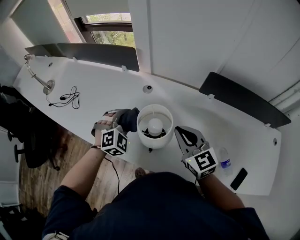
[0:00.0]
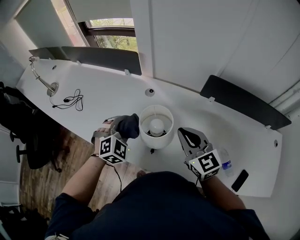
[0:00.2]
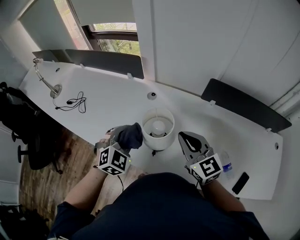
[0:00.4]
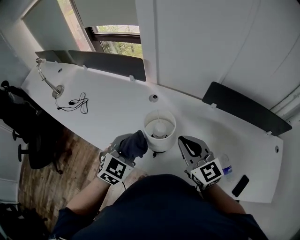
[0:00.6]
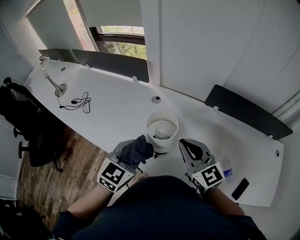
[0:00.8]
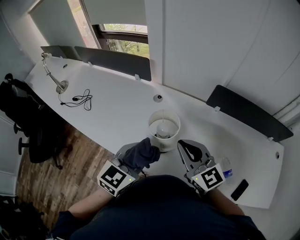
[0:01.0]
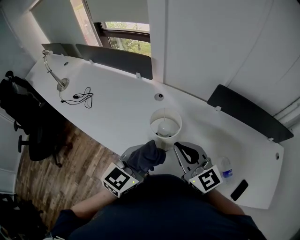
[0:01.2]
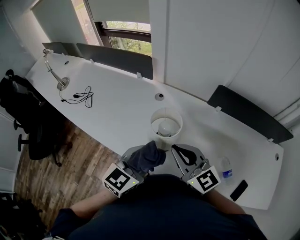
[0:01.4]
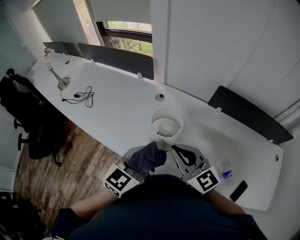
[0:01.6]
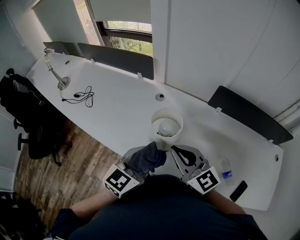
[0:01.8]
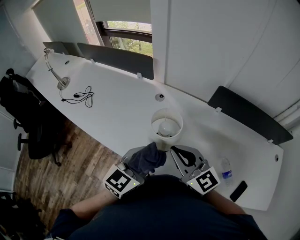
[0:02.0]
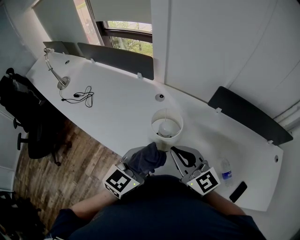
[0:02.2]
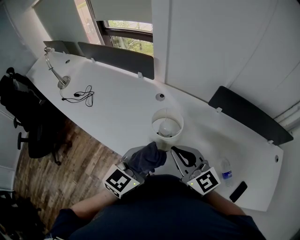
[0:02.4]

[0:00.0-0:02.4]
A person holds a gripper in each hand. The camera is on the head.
0:00.0 to 0:01.2: The right gripper shifts approximately 10 cm backward and upward; the left gripper shifts approximately 20 cm backward and upward, and rolls counterclockwise, seen from behind, by about 50 degrees.
0:01.2 to 0:02.4: The grippers stay close to where they were, moving slightly.

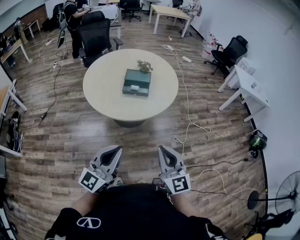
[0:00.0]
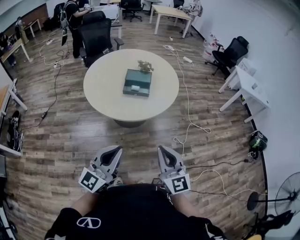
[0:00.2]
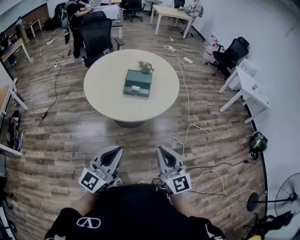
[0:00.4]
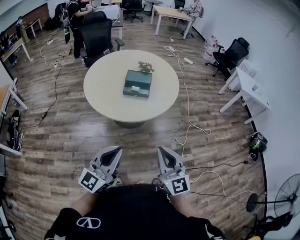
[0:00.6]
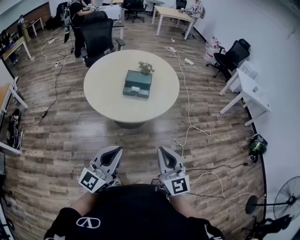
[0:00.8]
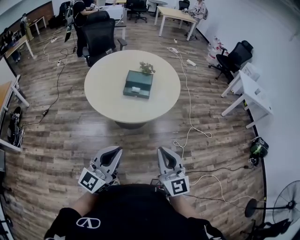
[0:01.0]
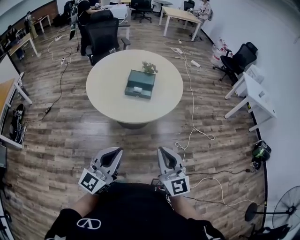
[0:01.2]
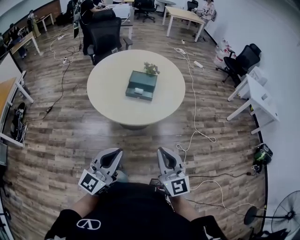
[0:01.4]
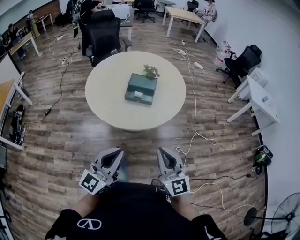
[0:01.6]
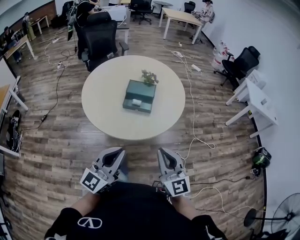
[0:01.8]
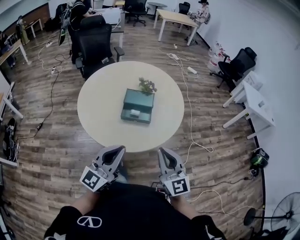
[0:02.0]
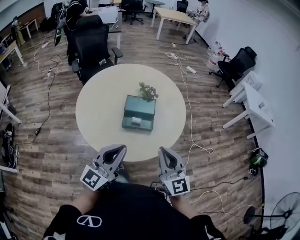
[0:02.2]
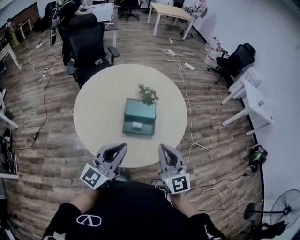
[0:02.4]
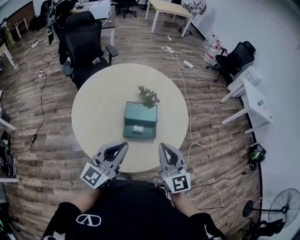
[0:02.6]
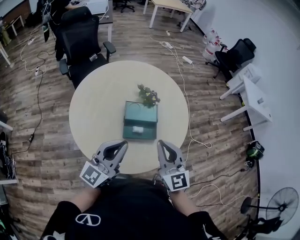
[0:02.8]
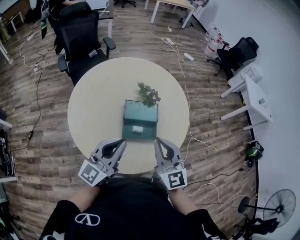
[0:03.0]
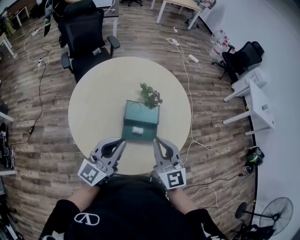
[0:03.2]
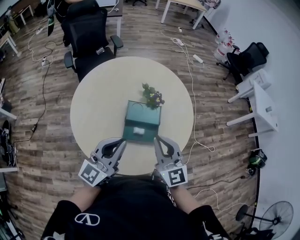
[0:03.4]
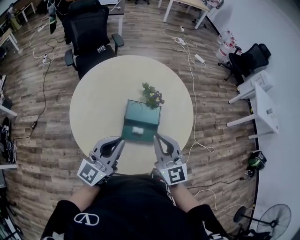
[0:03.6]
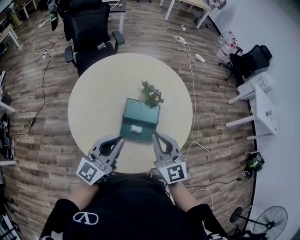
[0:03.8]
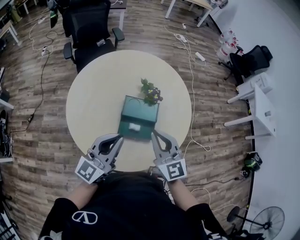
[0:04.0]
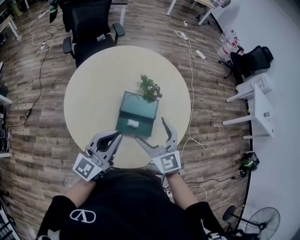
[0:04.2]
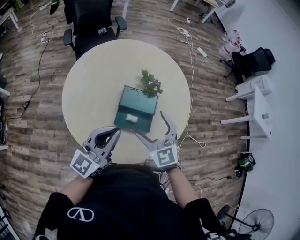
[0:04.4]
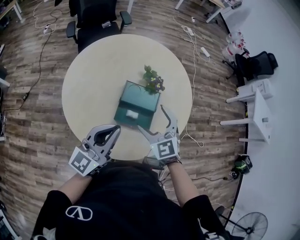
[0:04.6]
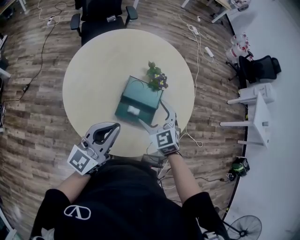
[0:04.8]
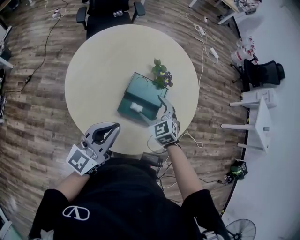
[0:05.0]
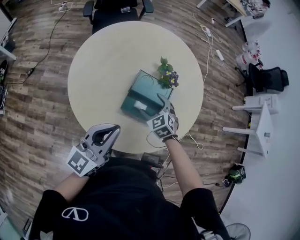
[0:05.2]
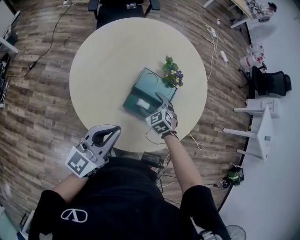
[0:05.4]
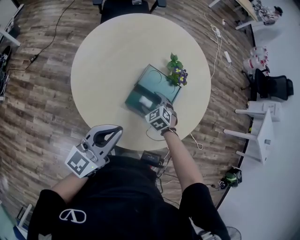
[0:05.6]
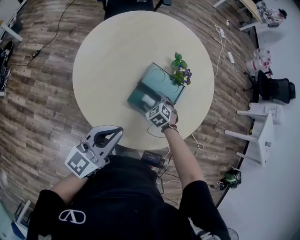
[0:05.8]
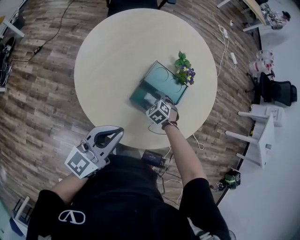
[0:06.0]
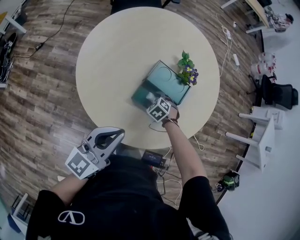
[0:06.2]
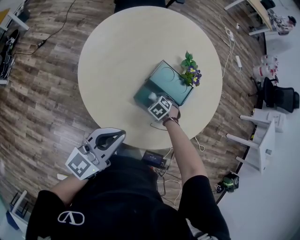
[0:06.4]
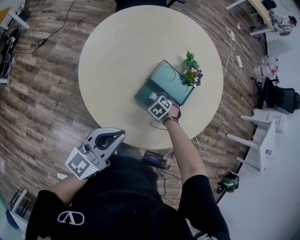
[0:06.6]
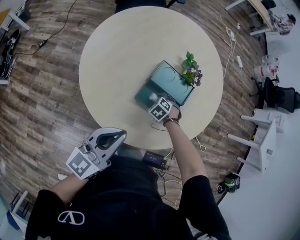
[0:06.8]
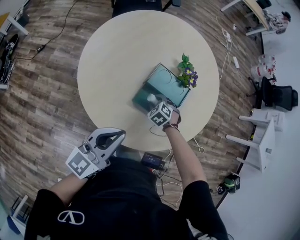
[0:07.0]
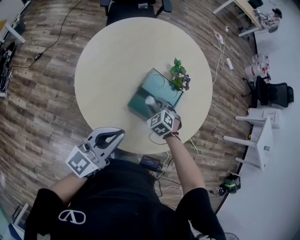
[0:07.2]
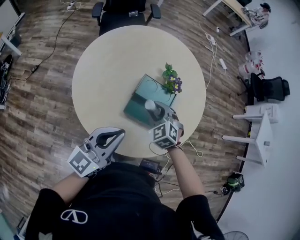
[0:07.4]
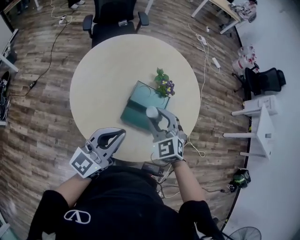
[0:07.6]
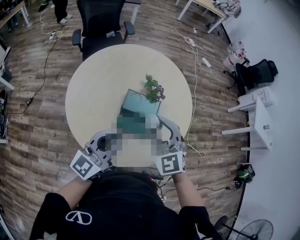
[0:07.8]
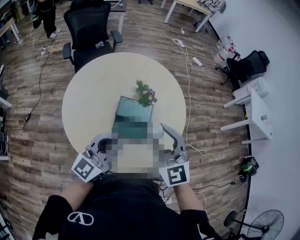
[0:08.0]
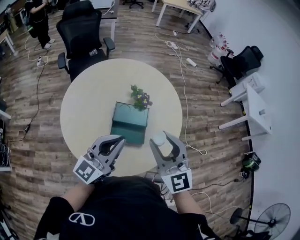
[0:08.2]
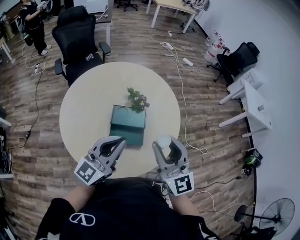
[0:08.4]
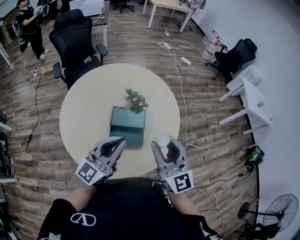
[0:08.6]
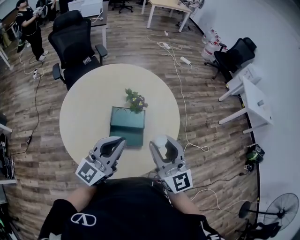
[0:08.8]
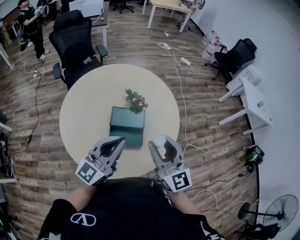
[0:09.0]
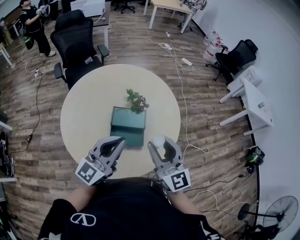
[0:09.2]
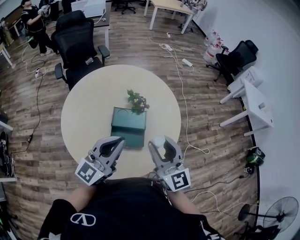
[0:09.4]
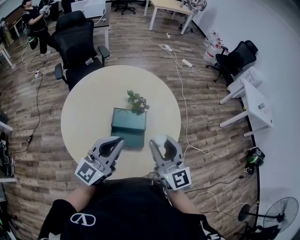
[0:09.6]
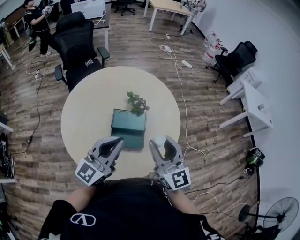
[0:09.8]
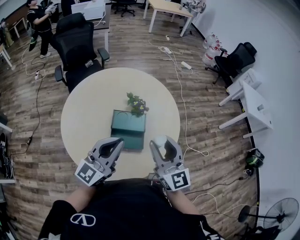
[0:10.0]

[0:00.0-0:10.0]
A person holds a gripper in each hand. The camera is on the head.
0:00.0 to 0:01.4: The left gripper moves about 5 cm, while the right gripper shifts roughly 5 cm forward.
0:01.4 to 0:02.8: The two grippers travel together, forward, roughly 50 cm.
0:02.8 to 0:04.2: The left gripper is displaced forward by some 5 cm. The right gripper goes approximately 10 cm forward and downward, turns by roughly 20 degrees, and opens.
0:04.2 to 0:05.8: The right gripper heads downward, covering about 35 cm, and tips its fingers downward by about 50 degrees, while the left gripper shifts some 10 cm downward and backward.
0:05.8 to 0:07.2: The right gripper shifts roughly 5 cm upward.
0:07.2 to 0:08.6: The left gripper travels upward, to the right and forward by roughly 20 cm, and rotates approximately 30 degrees. The right gripper travels upward by some 40 cm, and points its fingers some 70 degrees further upward.
0:08.6 to 0:10.0: The grippers move only a little.

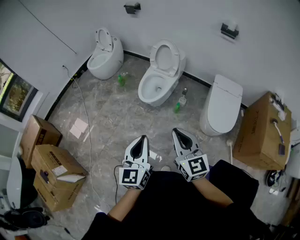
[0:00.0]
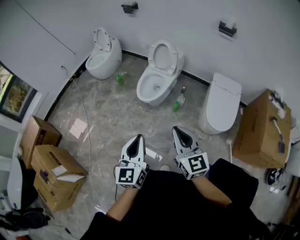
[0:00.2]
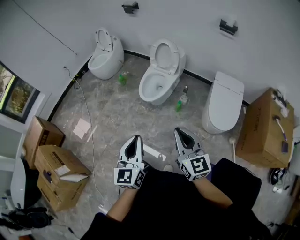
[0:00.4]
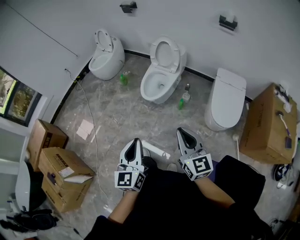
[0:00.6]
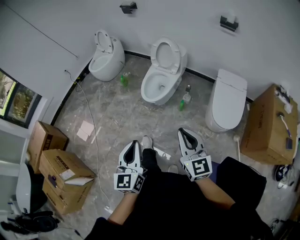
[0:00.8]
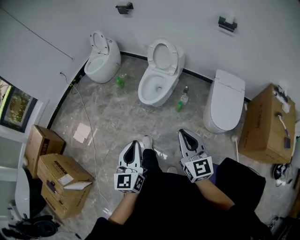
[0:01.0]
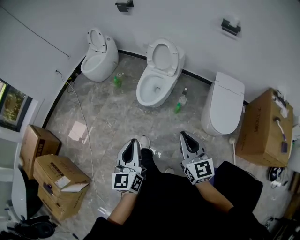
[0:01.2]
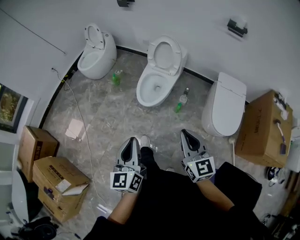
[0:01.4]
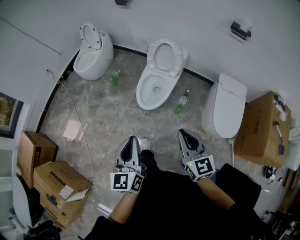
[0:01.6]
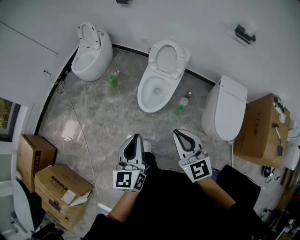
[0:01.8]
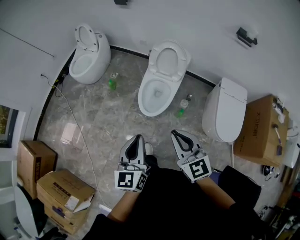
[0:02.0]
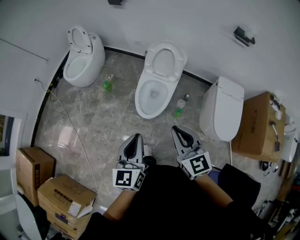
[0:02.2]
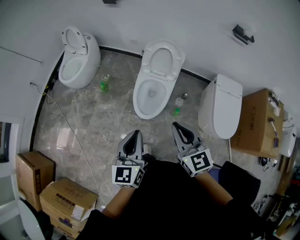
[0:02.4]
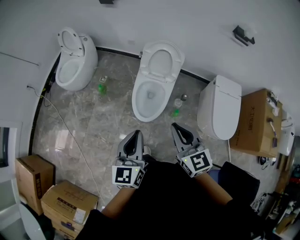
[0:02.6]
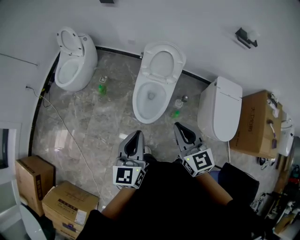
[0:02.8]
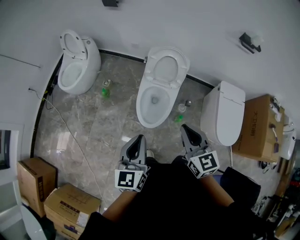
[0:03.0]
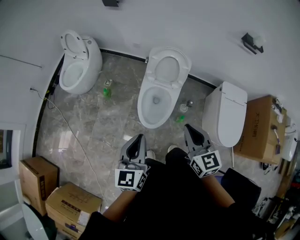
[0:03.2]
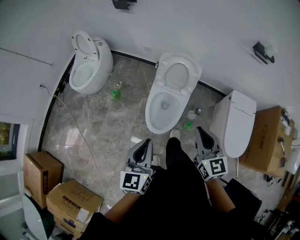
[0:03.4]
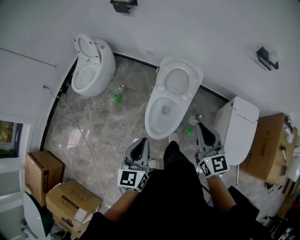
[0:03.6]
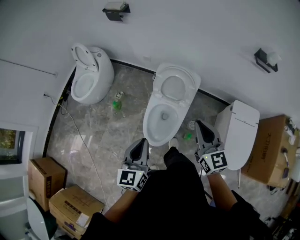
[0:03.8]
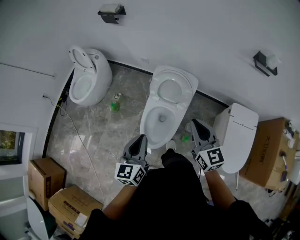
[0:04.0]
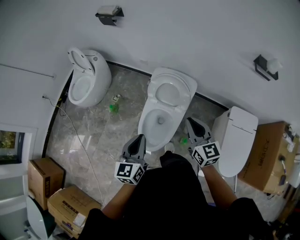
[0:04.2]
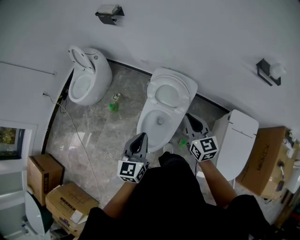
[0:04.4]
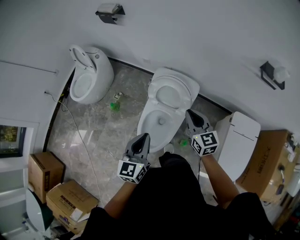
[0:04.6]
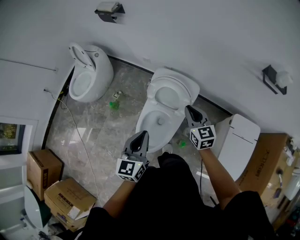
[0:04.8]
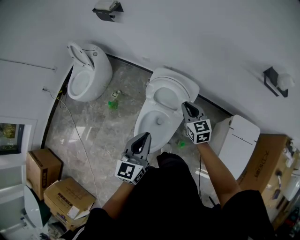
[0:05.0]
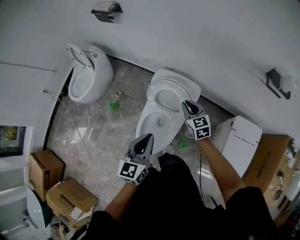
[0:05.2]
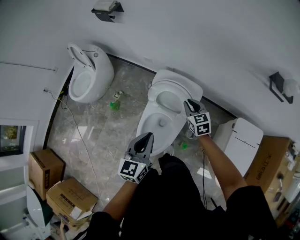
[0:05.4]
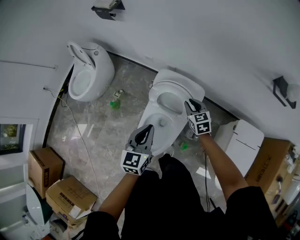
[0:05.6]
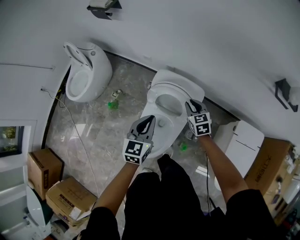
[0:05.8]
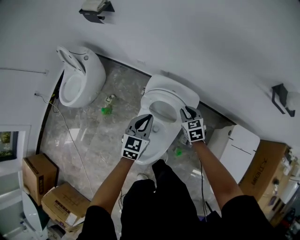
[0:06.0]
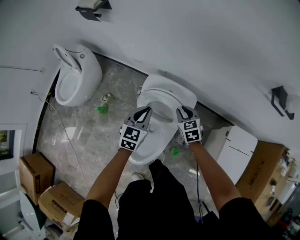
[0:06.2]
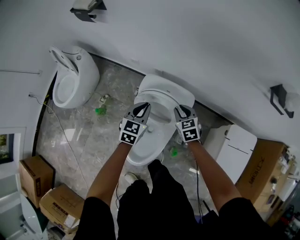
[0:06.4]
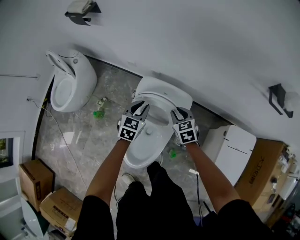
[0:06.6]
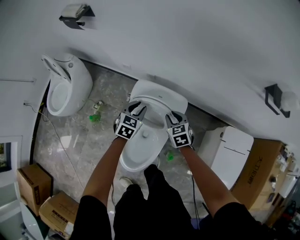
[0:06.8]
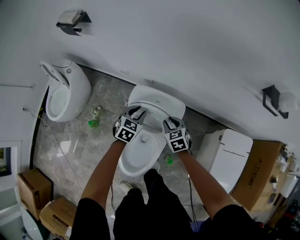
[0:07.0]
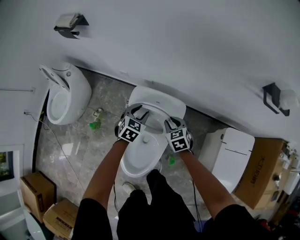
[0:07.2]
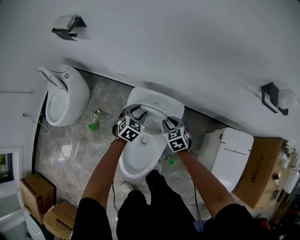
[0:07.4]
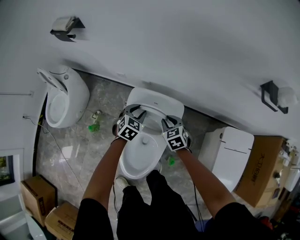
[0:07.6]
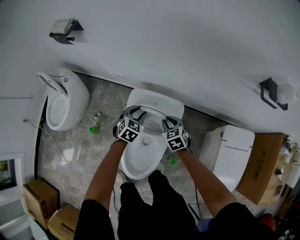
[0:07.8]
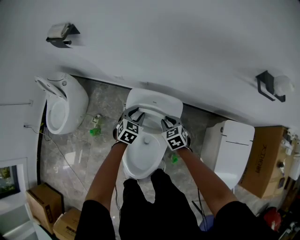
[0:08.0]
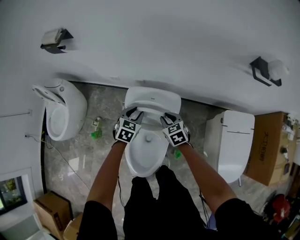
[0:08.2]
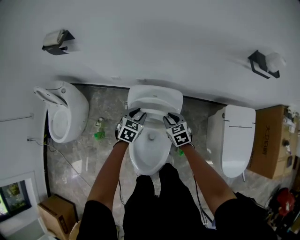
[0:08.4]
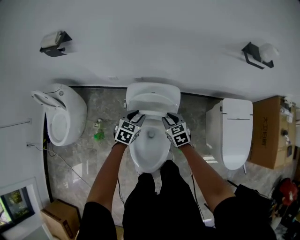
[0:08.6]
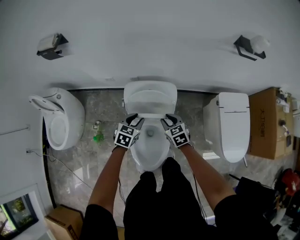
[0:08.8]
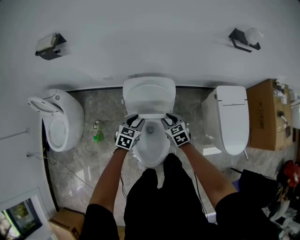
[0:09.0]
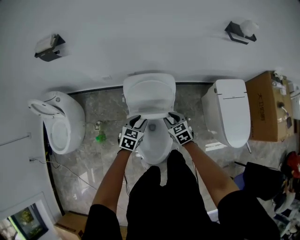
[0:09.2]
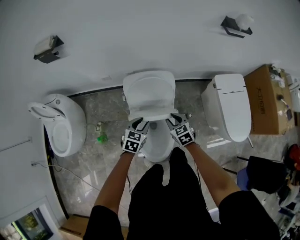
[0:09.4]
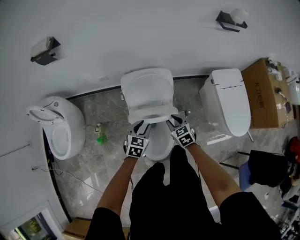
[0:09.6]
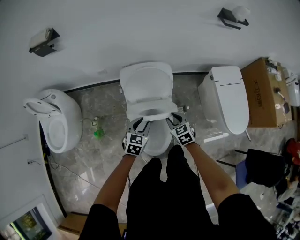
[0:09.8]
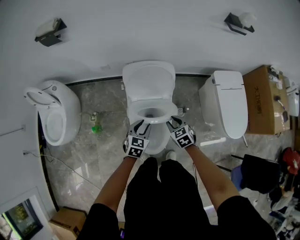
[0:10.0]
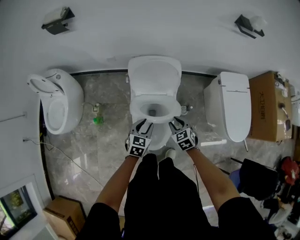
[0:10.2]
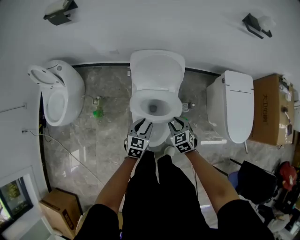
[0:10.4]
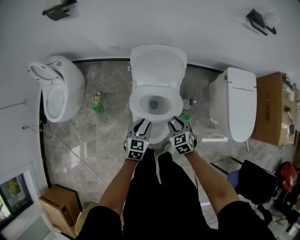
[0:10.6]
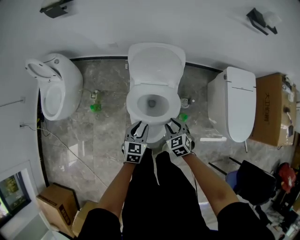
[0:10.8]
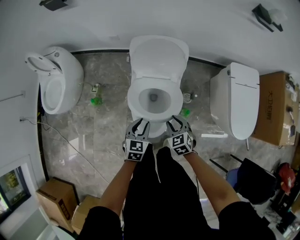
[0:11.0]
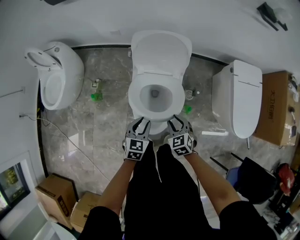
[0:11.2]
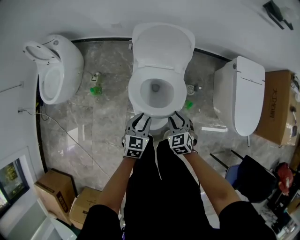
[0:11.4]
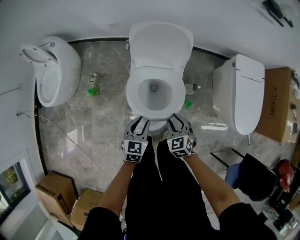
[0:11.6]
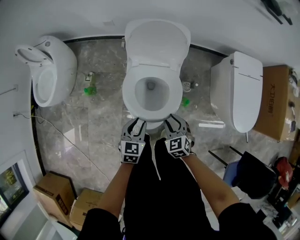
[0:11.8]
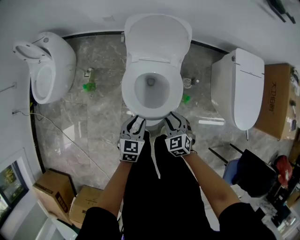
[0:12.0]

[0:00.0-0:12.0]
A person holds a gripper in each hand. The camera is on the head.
0:00.0 to 0:01.6: The left gripper travels forward and to the left by about 25 cm. The right gripper goes roughly 20 cm forward.
0:01.6 to 0:03.0: The two grippers go approximately 30 cm forward.
0:03.0 to 0:04.4: The two grippers go about 30 cm forward and to the right.
0:04.4 to 0:06.0: The left gripper shifts roughly 25 cm forward and downward. Meanwhile the right gripper travels downward and forward by approximately 30 cm, and rotates some 30 degrees.
0:06.0 to 0:07.6: The left gripper heads forward and downward, covering roughly 20 cm, turns by about 30 degrees, and opens.
0:07.6 to 0:09.0: Both grippers travel together backward, approximately 15 cm.
0:09.0 to 0:10.4: Both grippers move backward, approximately 20 cm.
0:10.4 to 0:12.0: The grippers both shift backward and downward by about 10 cm.
